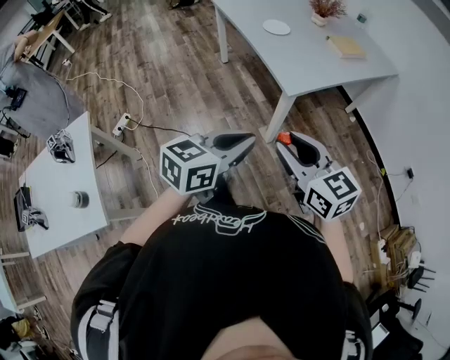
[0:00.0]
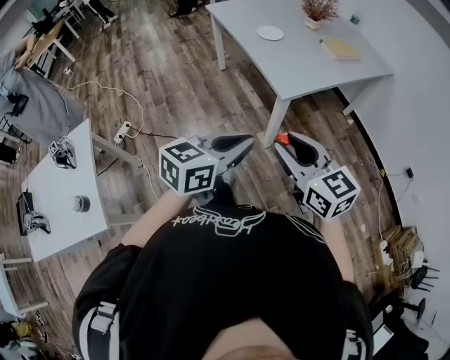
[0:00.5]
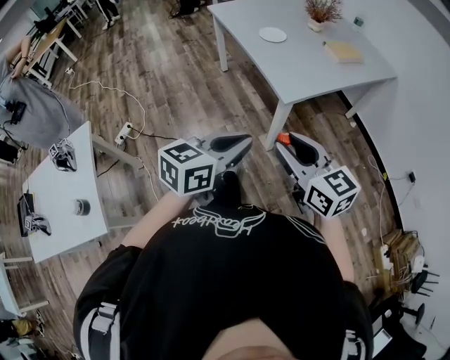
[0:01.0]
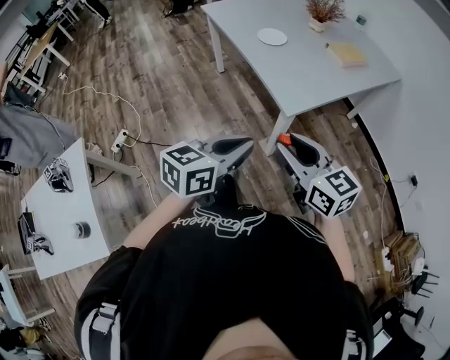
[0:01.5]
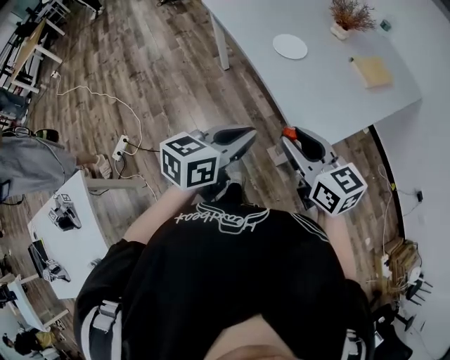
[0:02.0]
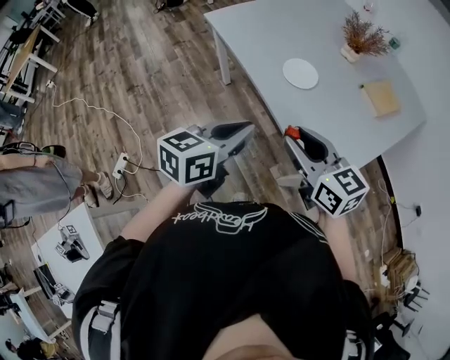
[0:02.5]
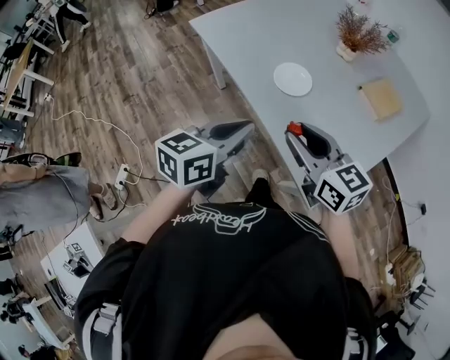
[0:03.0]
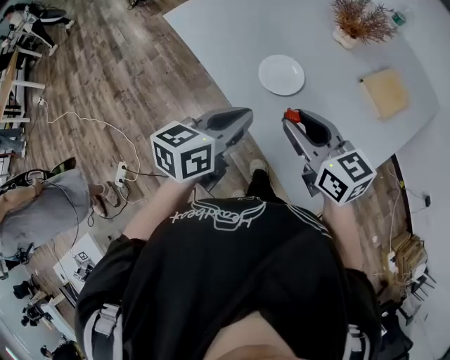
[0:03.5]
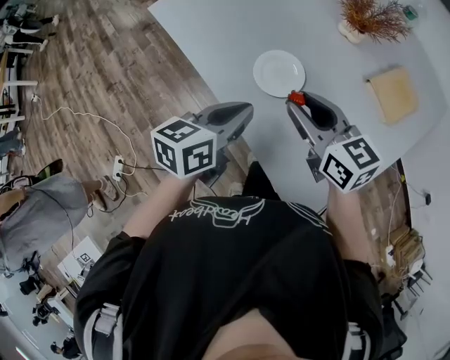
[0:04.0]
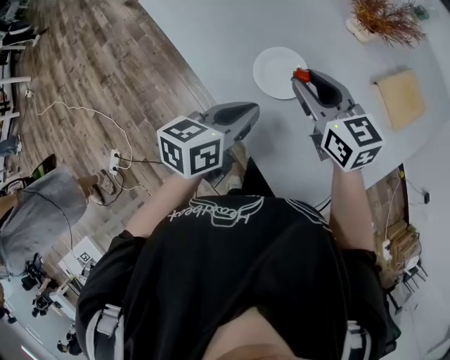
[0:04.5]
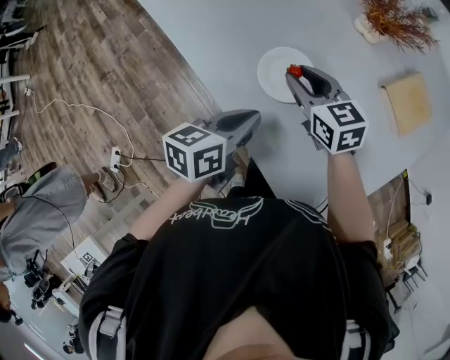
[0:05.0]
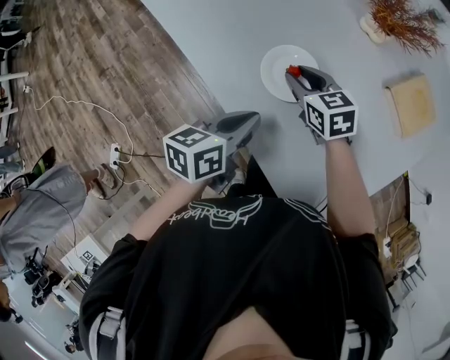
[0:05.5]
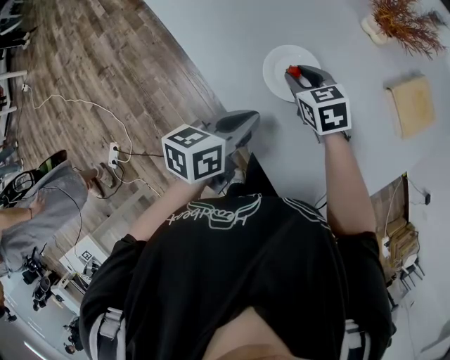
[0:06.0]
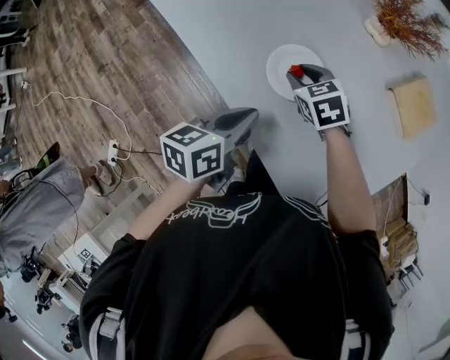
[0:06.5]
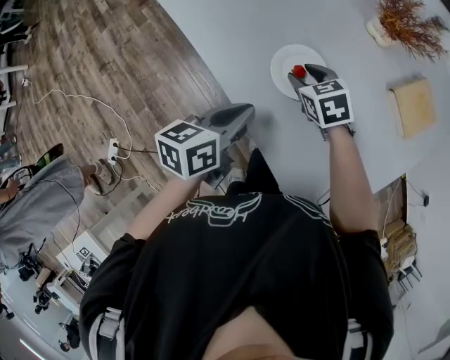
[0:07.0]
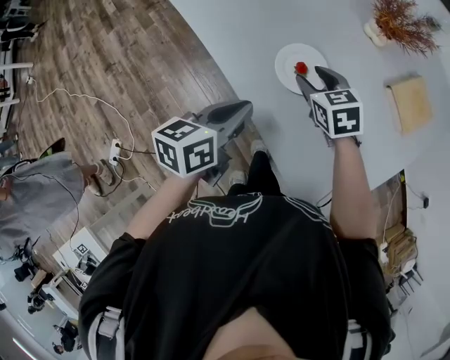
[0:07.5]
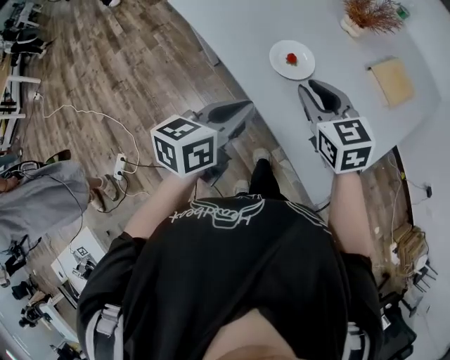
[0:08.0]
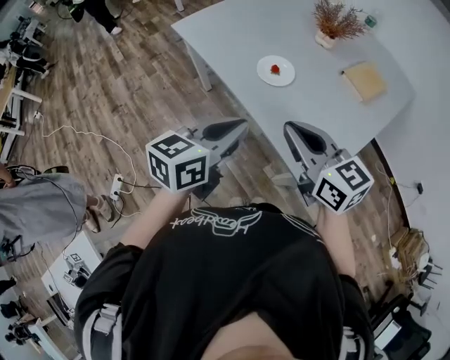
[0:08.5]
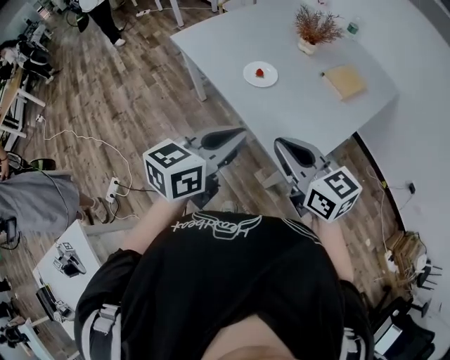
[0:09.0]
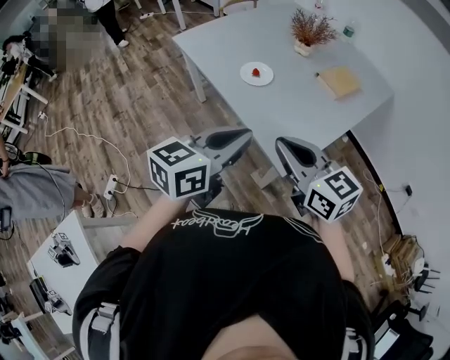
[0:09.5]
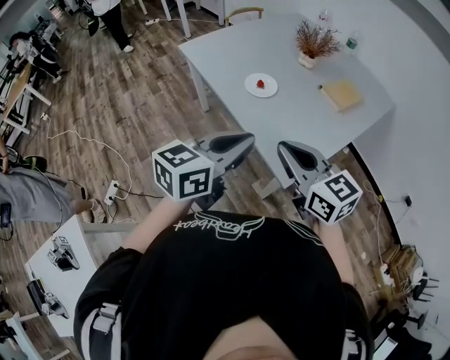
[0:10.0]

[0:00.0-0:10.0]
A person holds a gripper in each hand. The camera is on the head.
0:00.0 to 0:02.0: Both grippers move forward, approximately 30 cm.
0:02.0 to 0:04.0: The grippers both shift forward by roughly 35 cm.
0:04.0 to 0:06.0: The left gripper is displaced downward by approximately 10 cm, while the right gripper goes approximately 20 cm downward and forward, and rotates approximately 30 degrees.
0:06.0 to 0:08.0: The two grippers go roughly 20 cm upward and backward. The right gripper turns by about 20 degrees.
0:08.0 to 0:10.0: The left gripper travels backward, upward and to the right by about 25 cm. Meanwhile the right gripper travels backward and upward by some 30 cm, rotates about 20 degrees, and closes its fingers.

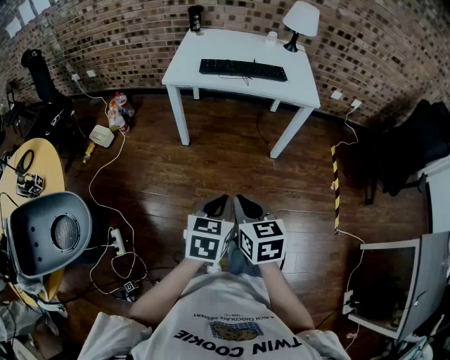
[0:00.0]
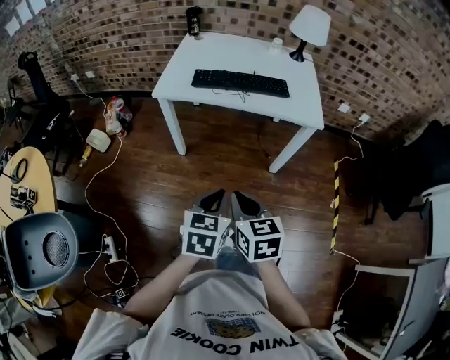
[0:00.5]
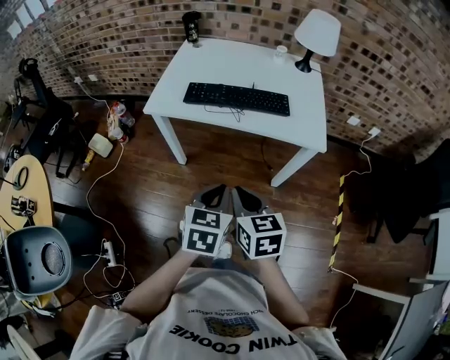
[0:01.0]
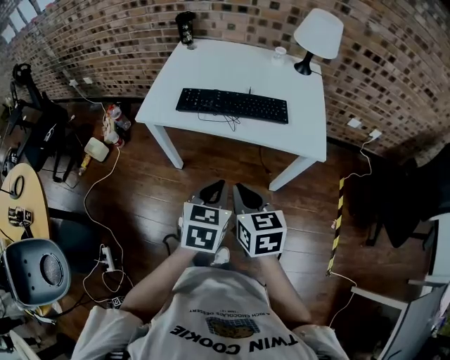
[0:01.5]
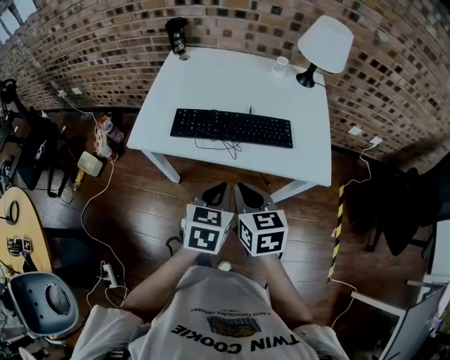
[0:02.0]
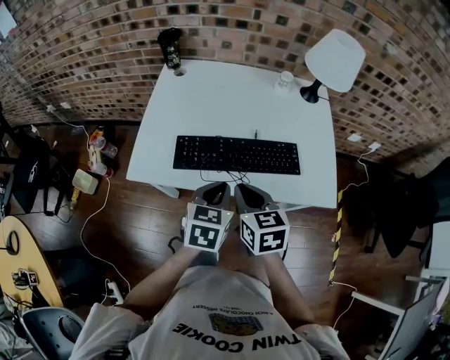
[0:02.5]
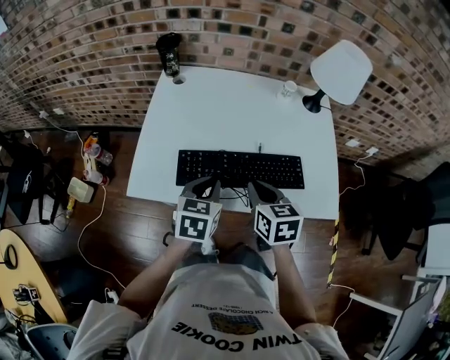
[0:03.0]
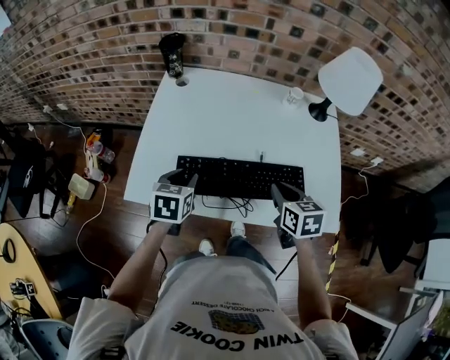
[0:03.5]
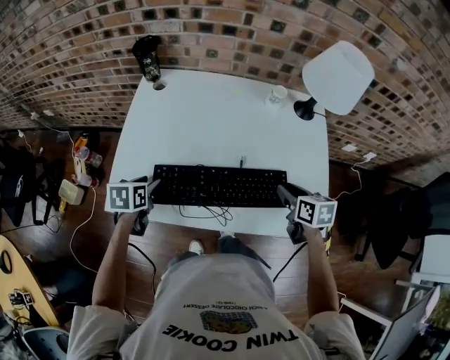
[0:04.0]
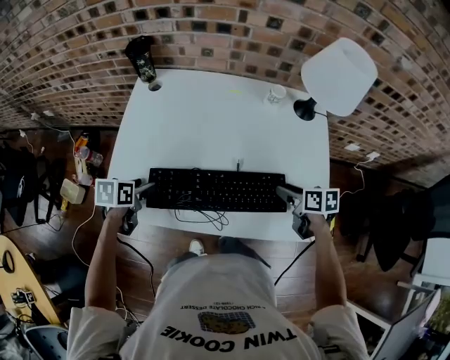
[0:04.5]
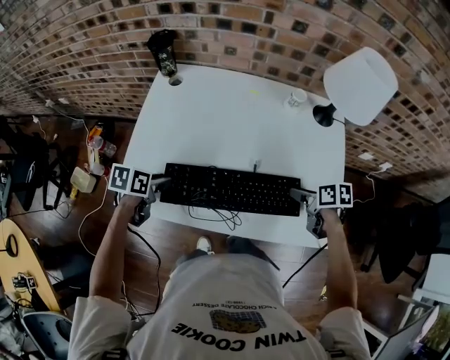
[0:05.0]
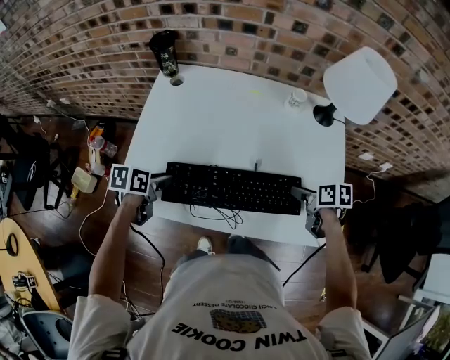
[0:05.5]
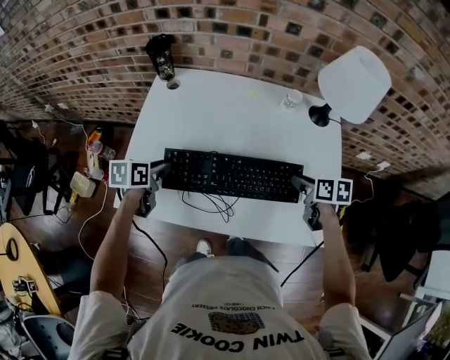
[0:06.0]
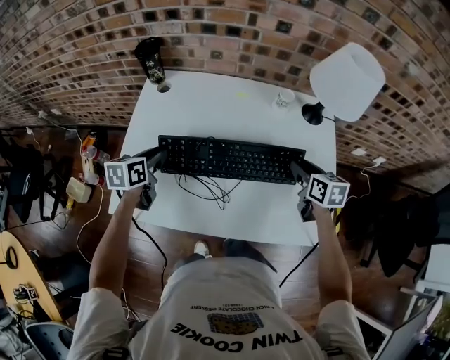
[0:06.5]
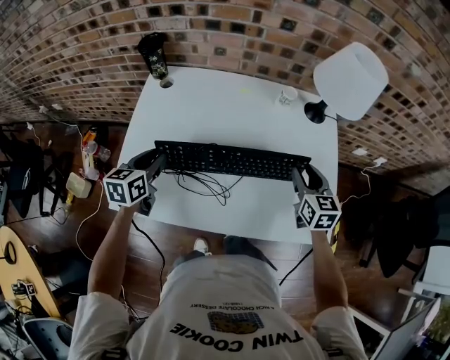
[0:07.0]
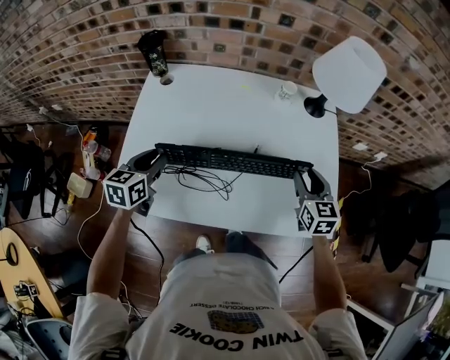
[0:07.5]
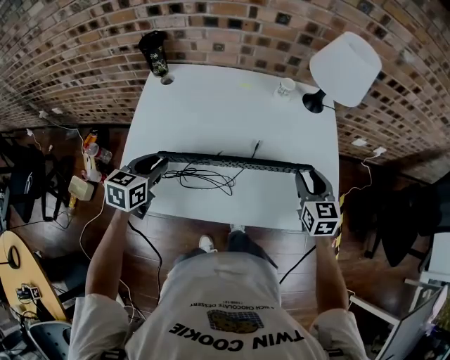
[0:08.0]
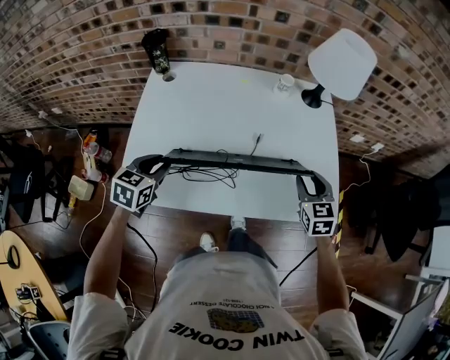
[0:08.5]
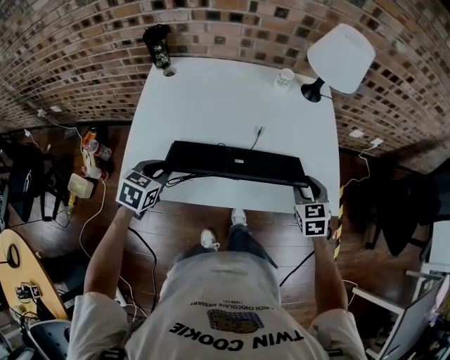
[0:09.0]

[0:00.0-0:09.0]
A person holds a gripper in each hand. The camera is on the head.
0:00.0 to 0:02.0: The pair of grippers is taken forward, about 50 cm.
0:02.0 to 0:04.5: The left gripper travels forward, to the left and downward by about 35 cm, rotates approximately 30 degrees, and opens; the right gripper shifts roughly 35 cm forward, to the right and downward, rotates approximately 30 degrees, and opens.
0:04.5 to 0:07.0: The grippers both shift upward and forward by some 10 cm. The right gripper rotates approximately 40 degrees. The left gripper swivels about 30 degrees, and closes.
0:07.0 to 0:09.0: The two grippers go approximately 10 cm backward. The left gripper rotates some 30 degrees. The right gripper swivels roughly 20 degrees.

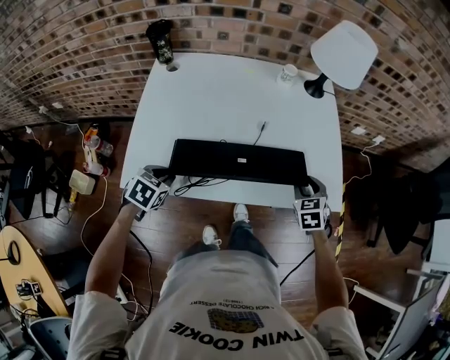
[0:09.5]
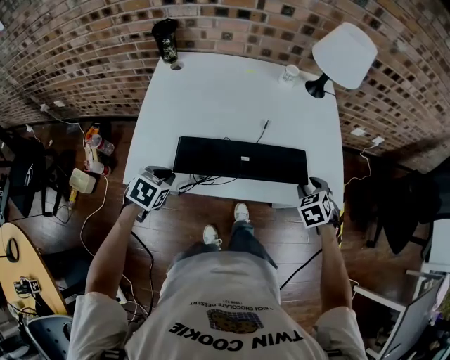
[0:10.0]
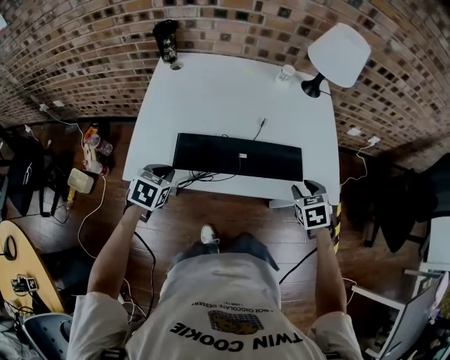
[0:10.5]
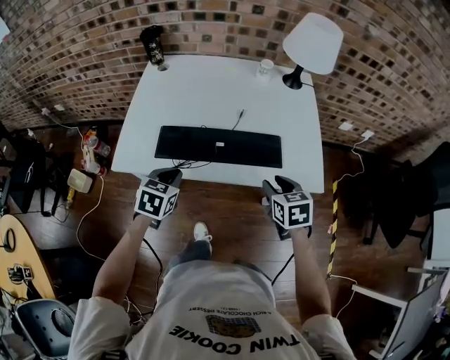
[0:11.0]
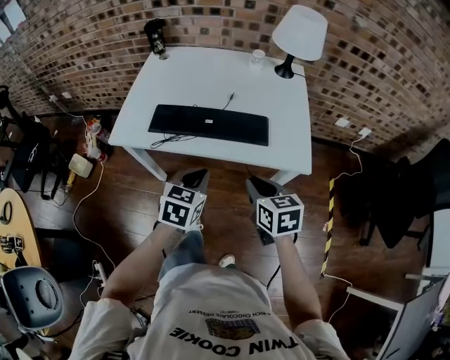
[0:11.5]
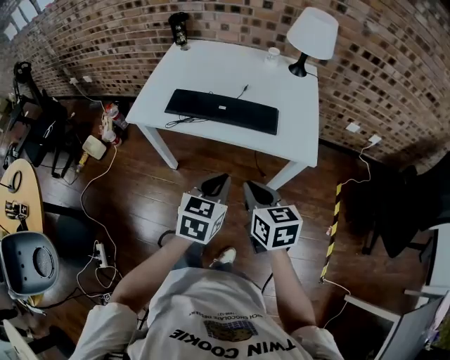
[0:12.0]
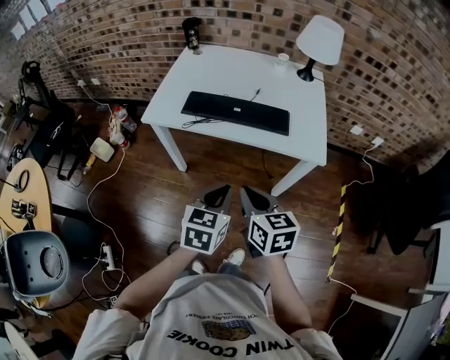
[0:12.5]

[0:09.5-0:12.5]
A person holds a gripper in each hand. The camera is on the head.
0:09.5 to 0:11.0: The left gripper is displaced to the right and upward by roughly 10 cm. Meanwhile the right gripper travels backward and upward by about 10 cm, and swivels roughly 20 degrees.
0:11.0 to 0:12.5: The right gripper is displaced backward, to the left and upward by approximately 25 cm, swivels some 20 degrees, and closes, while the left gripper heads backward and to the right, covering about 30 cm.

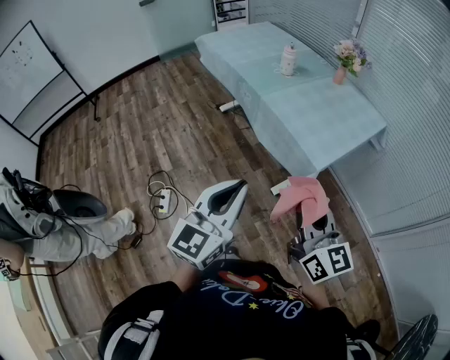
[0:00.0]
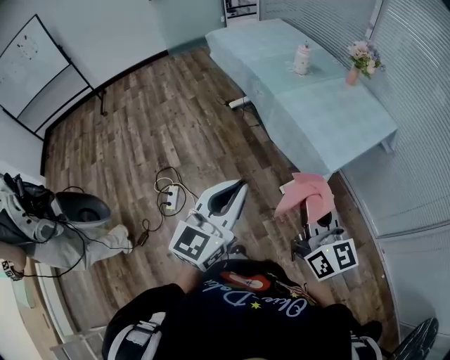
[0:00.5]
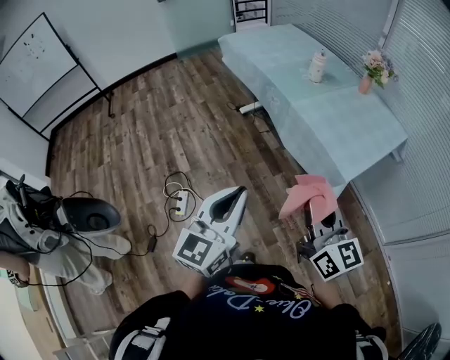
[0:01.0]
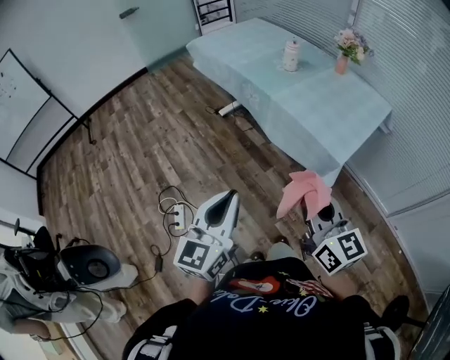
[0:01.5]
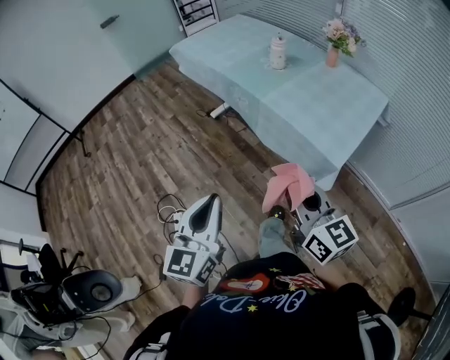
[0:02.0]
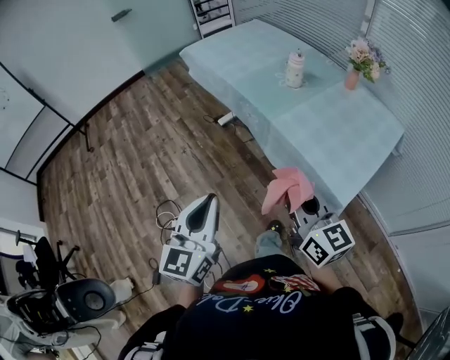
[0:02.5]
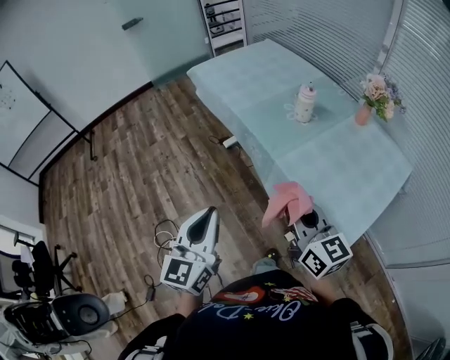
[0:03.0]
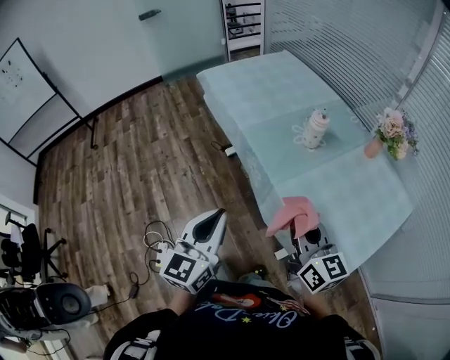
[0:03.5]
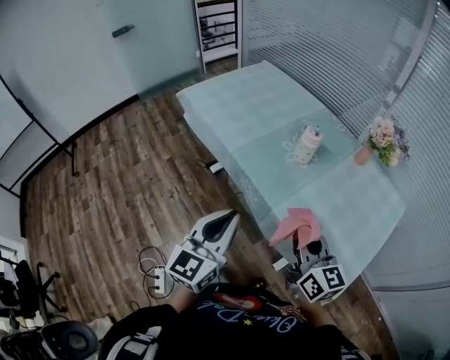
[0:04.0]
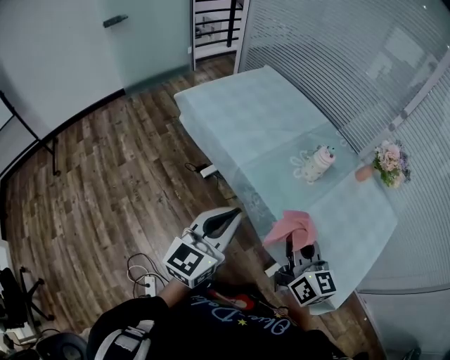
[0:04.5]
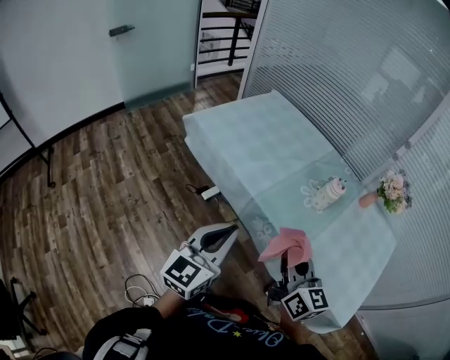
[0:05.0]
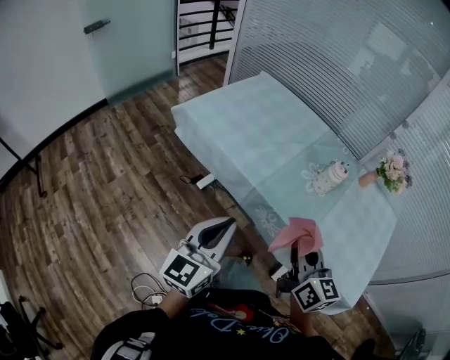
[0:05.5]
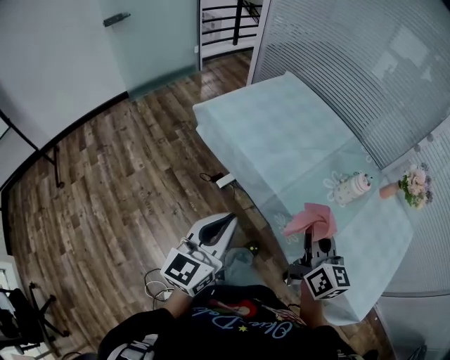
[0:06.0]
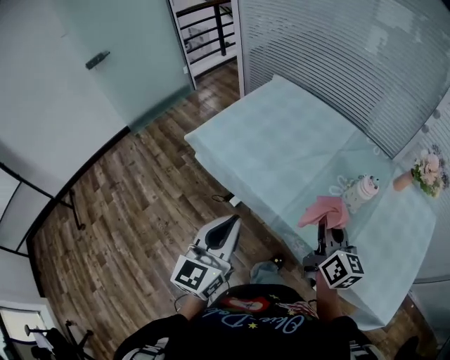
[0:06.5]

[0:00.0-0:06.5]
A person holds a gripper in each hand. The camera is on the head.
0:00.0 to 0:02.0: The grippers both shift to the left and forward by some 15 cm.
0:02.0 to 0:04.5: The two grippers travel together, forward, some 40 cm.
0:04.5 to 0:06.5: The left gripper heads to the left and forward, covering about 20 cm. The right gripper goes some 20 cm forward.
